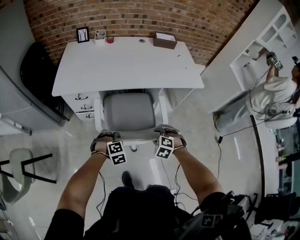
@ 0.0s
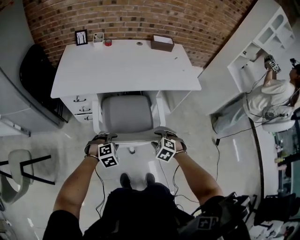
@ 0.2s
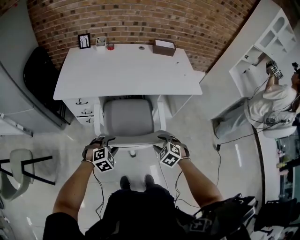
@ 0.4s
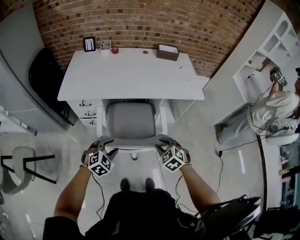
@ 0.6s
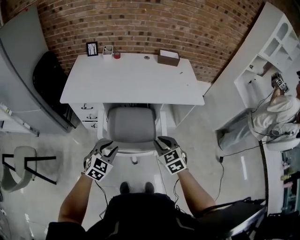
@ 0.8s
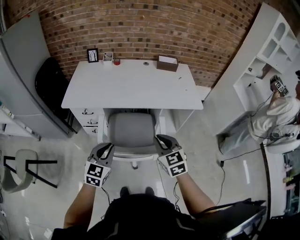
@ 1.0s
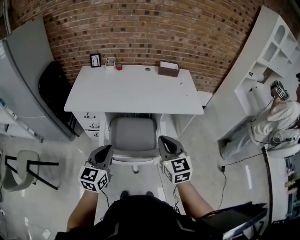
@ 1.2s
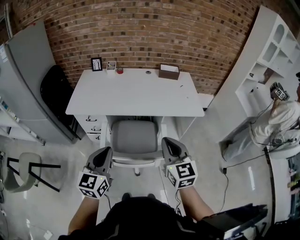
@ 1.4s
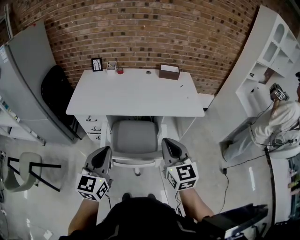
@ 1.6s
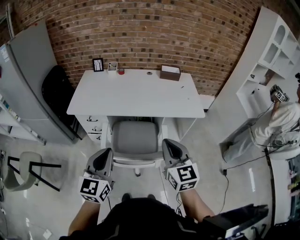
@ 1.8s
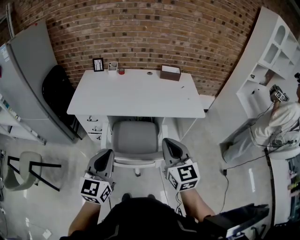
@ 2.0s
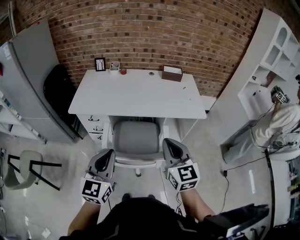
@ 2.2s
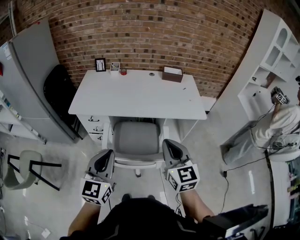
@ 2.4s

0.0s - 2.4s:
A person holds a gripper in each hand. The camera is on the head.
0.0s - 1.2s: Both grippers move upward, roughly 30 cm. The left gripper points its fingers some 50 degrees further upward, and opens and closes again; the right gripper angles its fingers upward, by approximately 50 degrees, and closes.
1.2s - 2.4s: The left gripper shifts approximately 5 cm upward. The right gripper shifts by about 5 cm.

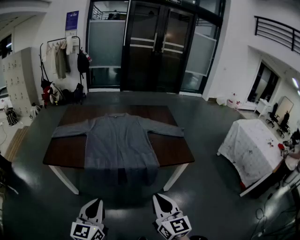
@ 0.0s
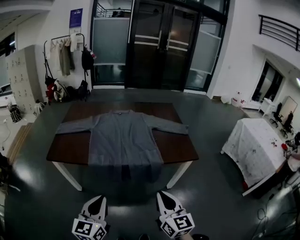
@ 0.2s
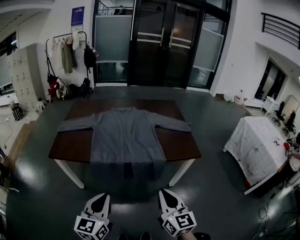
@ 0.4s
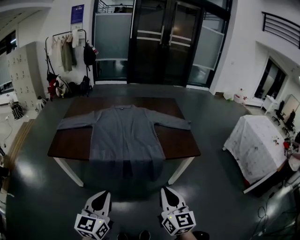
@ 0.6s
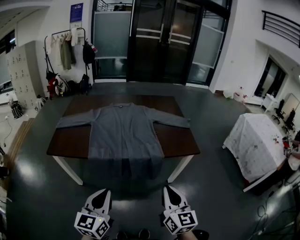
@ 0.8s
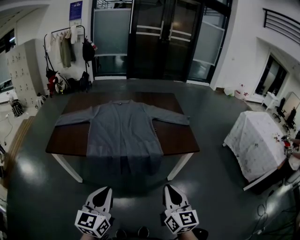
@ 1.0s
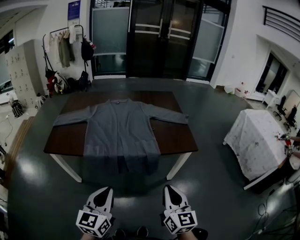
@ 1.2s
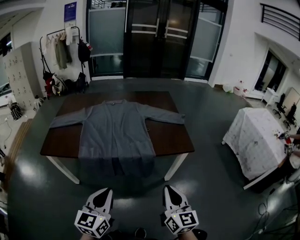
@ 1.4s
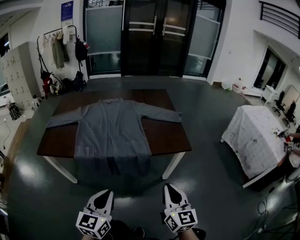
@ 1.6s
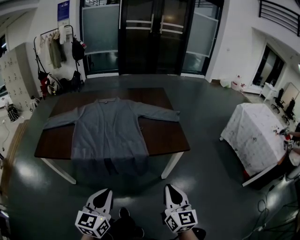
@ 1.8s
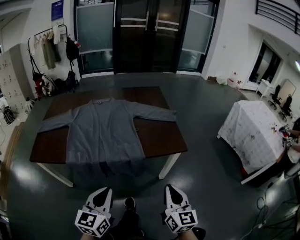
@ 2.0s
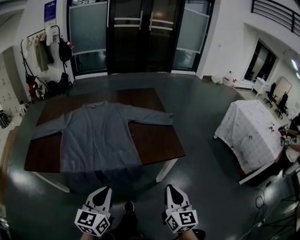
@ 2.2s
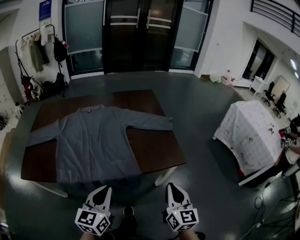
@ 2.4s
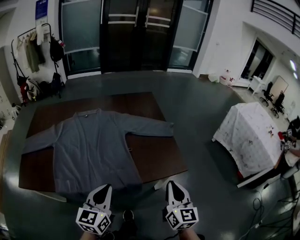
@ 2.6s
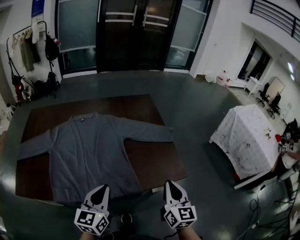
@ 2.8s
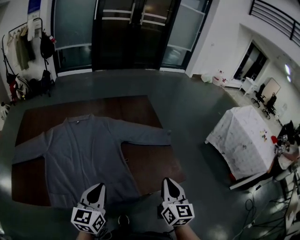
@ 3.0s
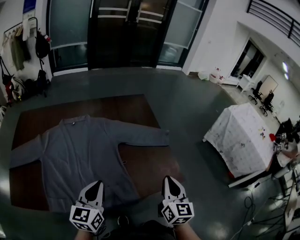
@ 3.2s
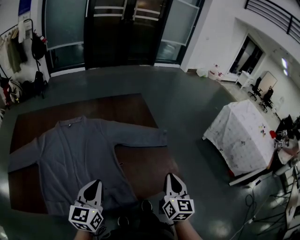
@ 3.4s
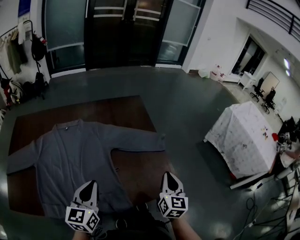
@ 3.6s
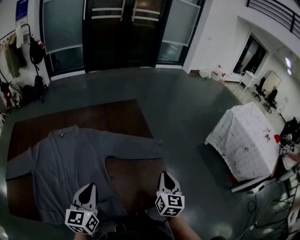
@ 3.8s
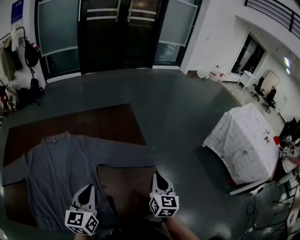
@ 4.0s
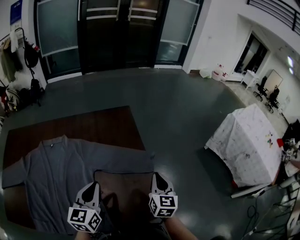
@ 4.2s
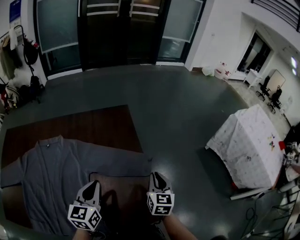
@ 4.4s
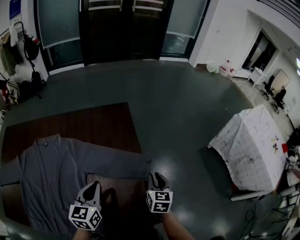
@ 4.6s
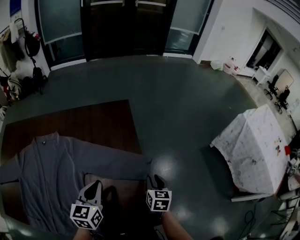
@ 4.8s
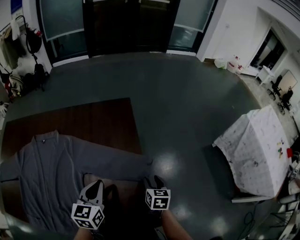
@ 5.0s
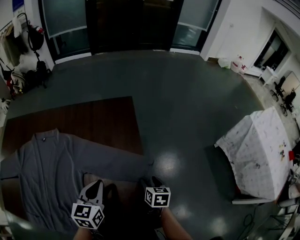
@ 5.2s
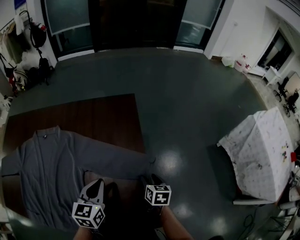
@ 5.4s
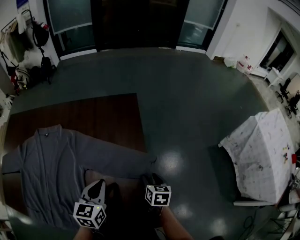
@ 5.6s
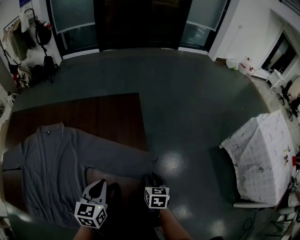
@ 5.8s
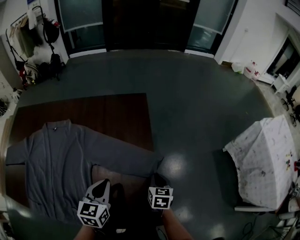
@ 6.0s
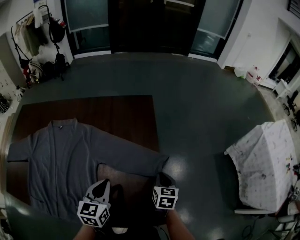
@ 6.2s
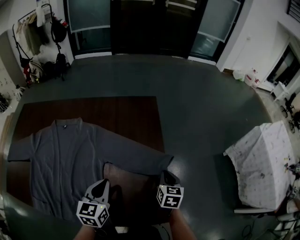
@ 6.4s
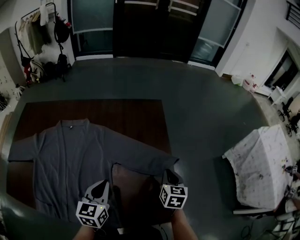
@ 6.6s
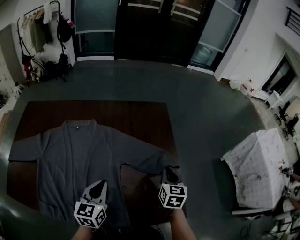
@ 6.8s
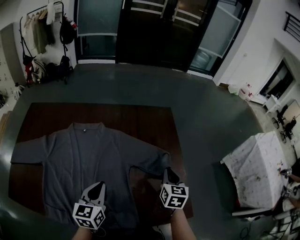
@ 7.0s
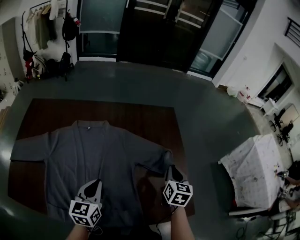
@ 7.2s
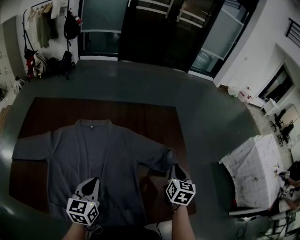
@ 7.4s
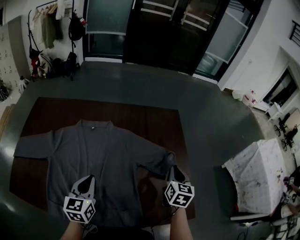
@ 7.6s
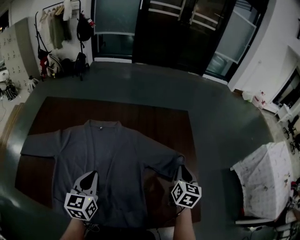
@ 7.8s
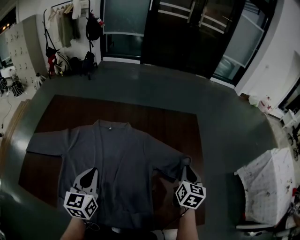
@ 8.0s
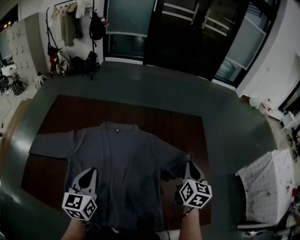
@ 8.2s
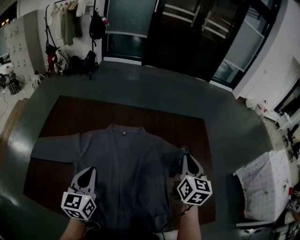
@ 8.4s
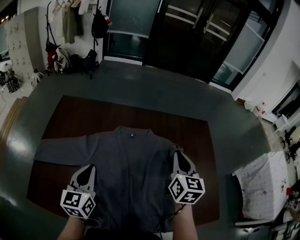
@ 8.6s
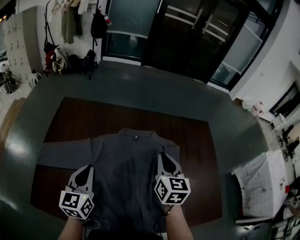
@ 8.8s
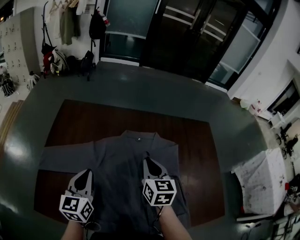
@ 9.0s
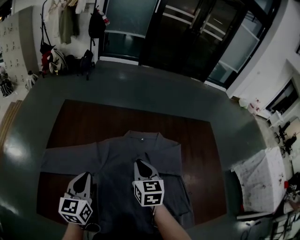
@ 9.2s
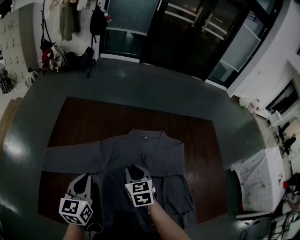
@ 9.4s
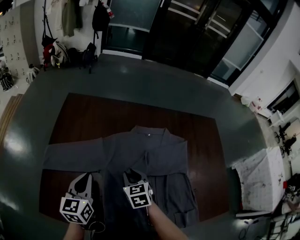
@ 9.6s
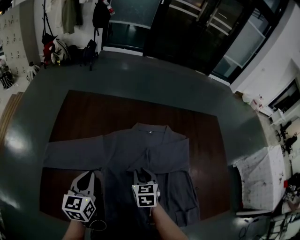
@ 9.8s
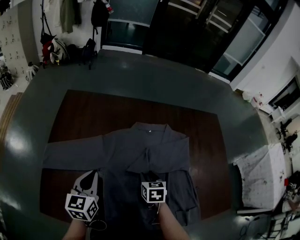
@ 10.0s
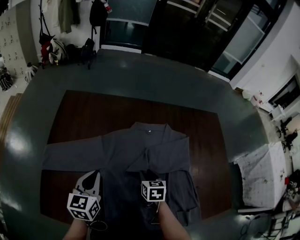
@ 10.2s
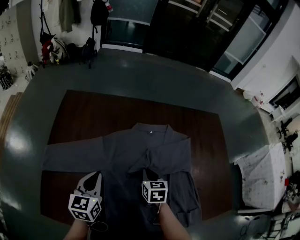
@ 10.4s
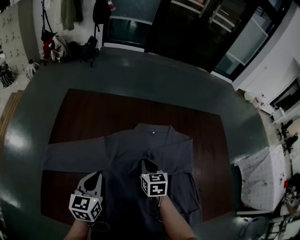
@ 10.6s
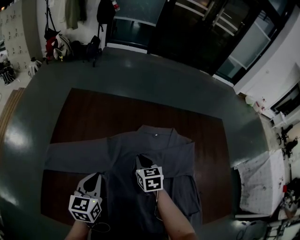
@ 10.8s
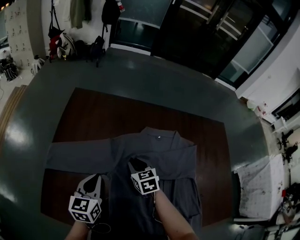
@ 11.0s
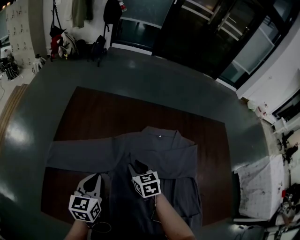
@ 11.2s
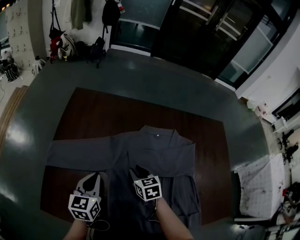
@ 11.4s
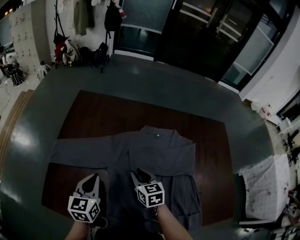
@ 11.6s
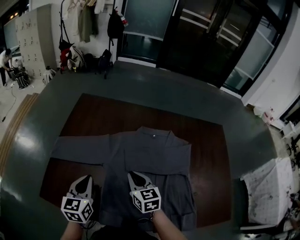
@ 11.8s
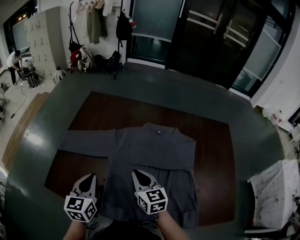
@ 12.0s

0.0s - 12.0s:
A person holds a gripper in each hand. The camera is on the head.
0.0s - 1.6s: The grippers both shift to the right by about 15 cm.
1.6s - 3.0s: The two grippers go about 35 cm forward.
3.0s - 4.4s: The right gripper moves forward, approximately 30 cm, while the left gripper shifts some 30 cm forward and to the right.
4.4s - 6.0s: The left gripper shifts about 5 cm downward. Meanwhile the right gripper shifts roughly 10 cm downward, swivels approximately 20 degrees, and opens, then closes once more.
6.0s - 7.6s: The right gripper is displaced to the left and upward by about 25 cm, while the left gripper heads to the left, covering about 30 cm.
7.6s - 9.0s: Both grippers travel together to the left, approximately 35 cm. The right gripper changes its angle by approximately 20 degrees.
9.0s - 10.4s: The right gripper shifts approximately 15 cm downward, rotates roughly 20 degrees, and opens and closes again. Meanwhile the left gripper moves downward, roughly 5 cm.
10.4s - 12.0s: The left gripper travels backward by roughly 10 cm. The right gripper heads upward, backward and to the left, covering some 15 cm, rotates about 30 degrees, and opens and closes again.

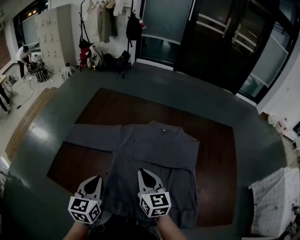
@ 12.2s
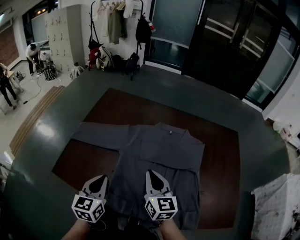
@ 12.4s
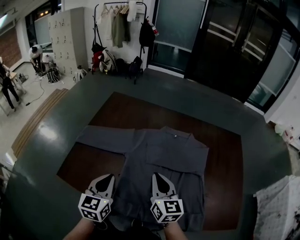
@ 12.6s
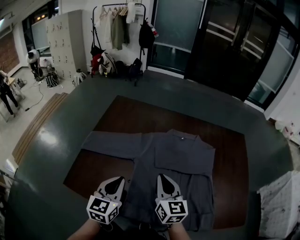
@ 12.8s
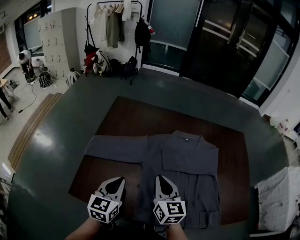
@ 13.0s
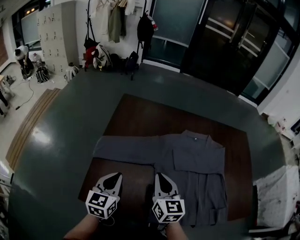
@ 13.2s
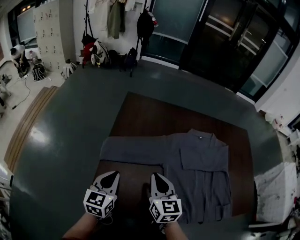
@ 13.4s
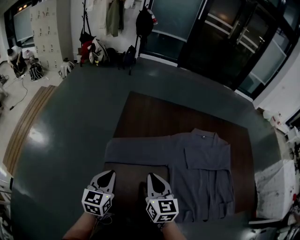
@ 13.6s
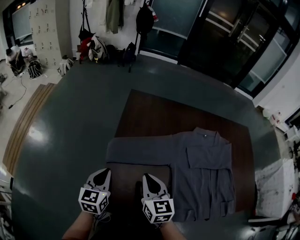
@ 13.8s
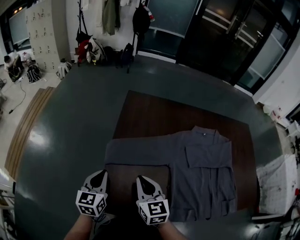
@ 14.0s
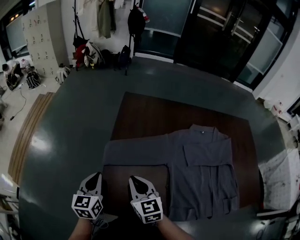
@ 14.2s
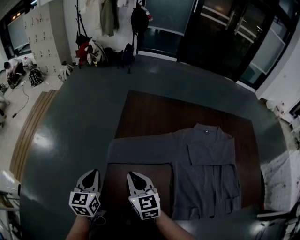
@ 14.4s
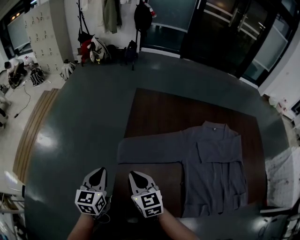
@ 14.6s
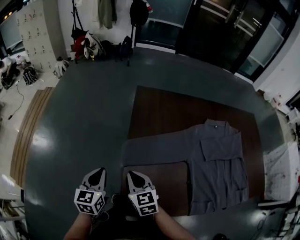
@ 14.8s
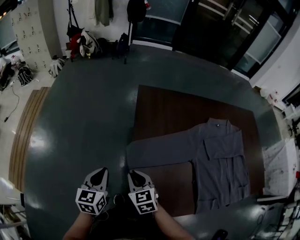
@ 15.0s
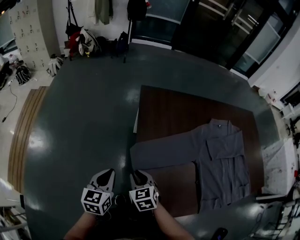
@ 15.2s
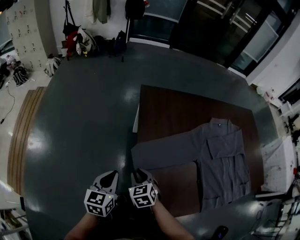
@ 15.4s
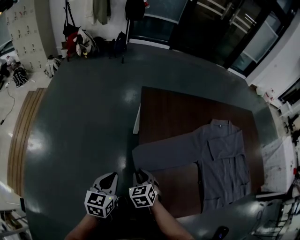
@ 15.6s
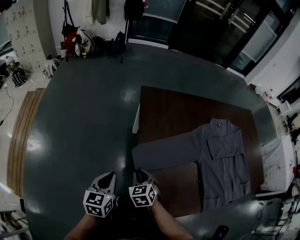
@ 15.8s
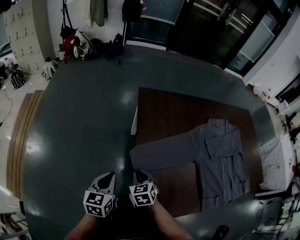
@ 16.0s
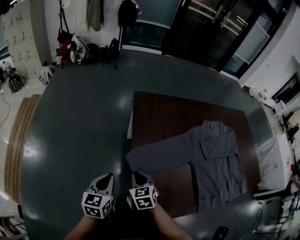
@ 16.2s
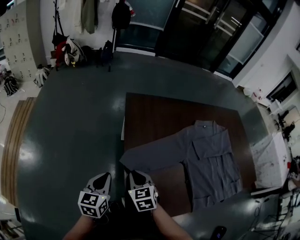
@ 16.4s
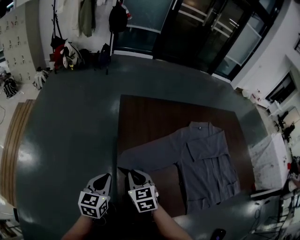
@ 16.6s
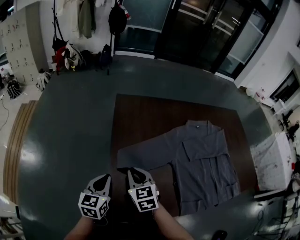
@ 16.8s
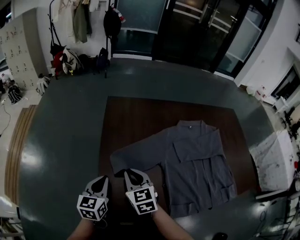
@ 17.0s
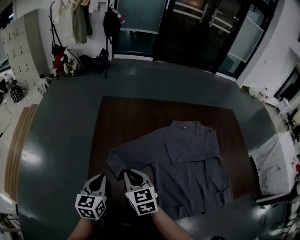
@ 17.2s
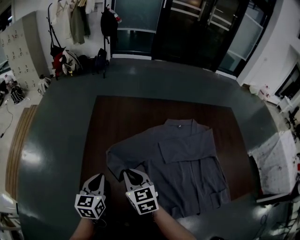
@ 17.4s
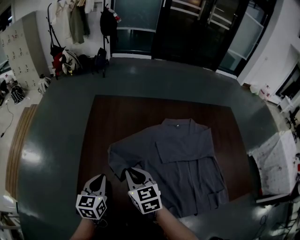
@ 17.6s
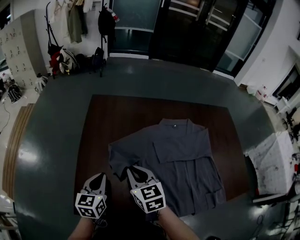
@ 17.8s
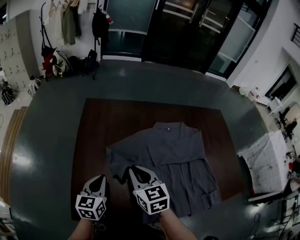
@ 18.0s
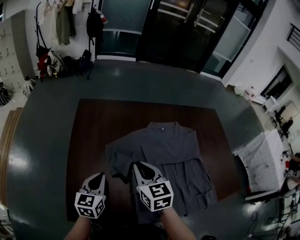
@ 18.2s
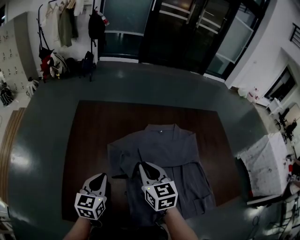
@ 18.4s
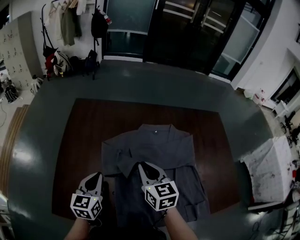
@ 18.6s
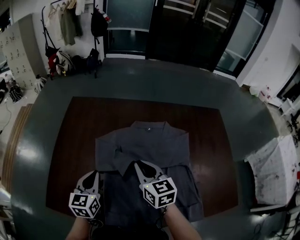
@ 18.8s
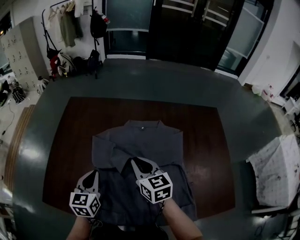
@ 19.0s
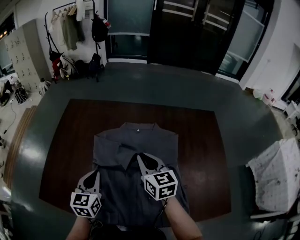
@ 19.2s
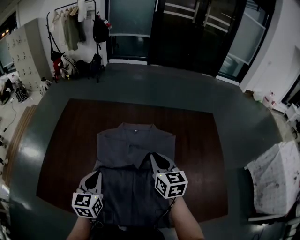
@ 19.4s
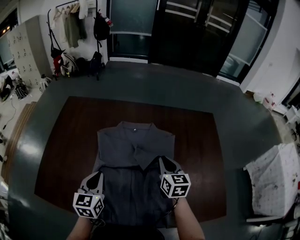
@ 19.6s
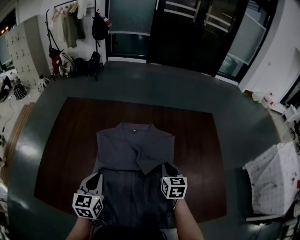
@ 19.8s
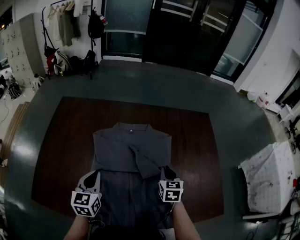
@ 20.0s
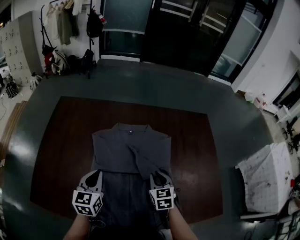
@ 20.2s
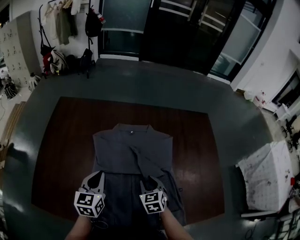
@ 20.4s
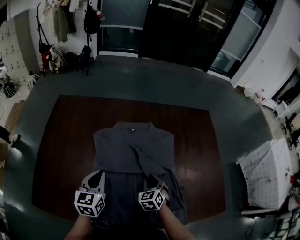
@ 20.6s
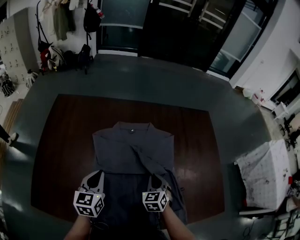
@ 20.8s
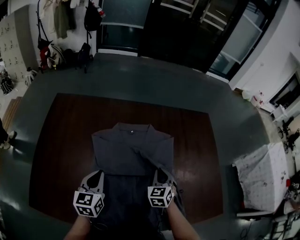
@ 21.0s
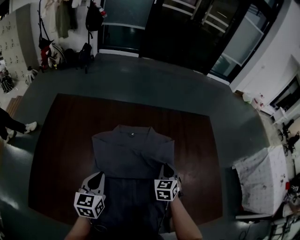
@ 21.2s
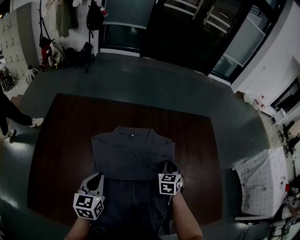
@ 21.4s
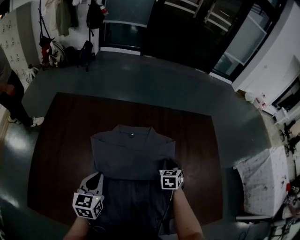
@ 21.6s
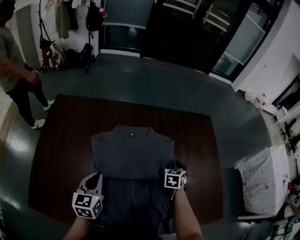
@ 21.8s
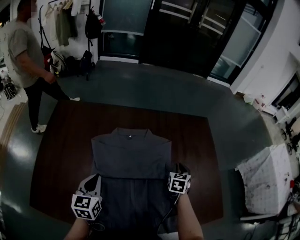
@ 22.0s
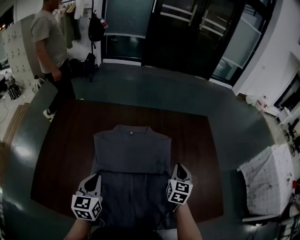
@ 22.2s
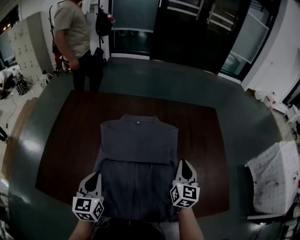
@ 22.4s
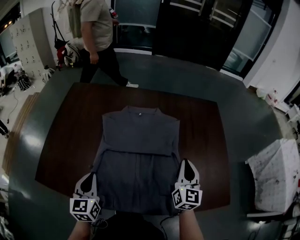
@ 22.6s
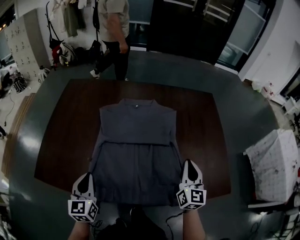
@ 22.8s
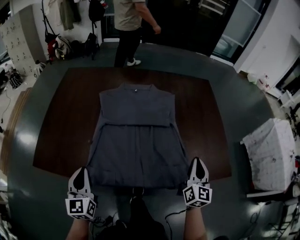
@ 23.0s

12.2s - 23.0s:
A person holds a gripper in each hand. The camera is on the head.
12.2s - 13.8s: The two grippers go roughly 35 cm to the left.
13.8s - 15.2s: The left gripper goes some 15 cm to the left and forward, while the right gripper shifts some 20 cm to the left and downward, and rotates roughly 20 degrees.
15.2s - 16.8s: The right gripper goes roughly 15 cm to the right and upward. Meanwhile the left gripper travels to the right by approximately 10 cm.
16.8s - 18.4s: The grippers both shift to the right by roughly 30 cm.
18.4s - 20.0s: The left gripper is displaced to the right by about 20 cm. Meanwhile the right gripper is displaced to the right by about 35 cm.
20.0s - 21.4s: The right gripper shifts about 10 cm forward, and opens, then closes once more. The left gripper travels forward by approximately 5 cm.
21.4s - 23.0s: The right gripper travels backward and to the right by about 35 cm, and tilts its fingers roughly 30 degrees upward; the left gripper heads backward, covering about 30 cm, and turns by approximately 20 degrees.
